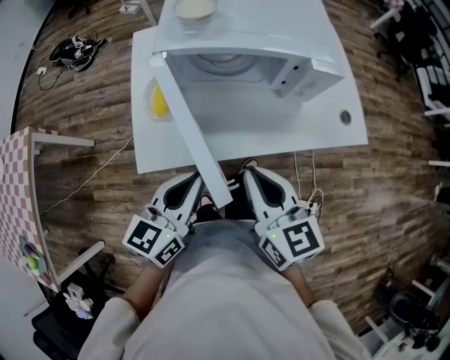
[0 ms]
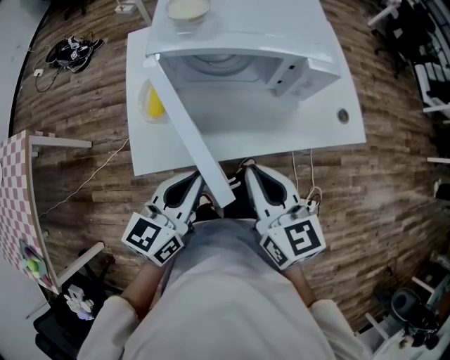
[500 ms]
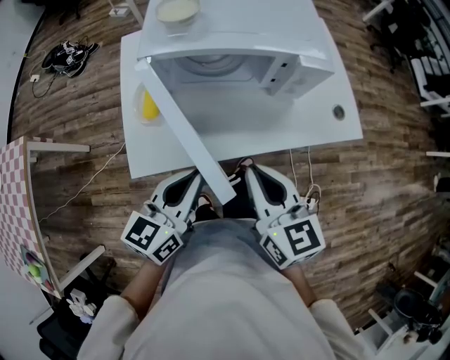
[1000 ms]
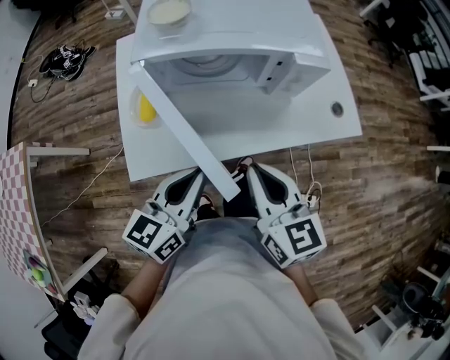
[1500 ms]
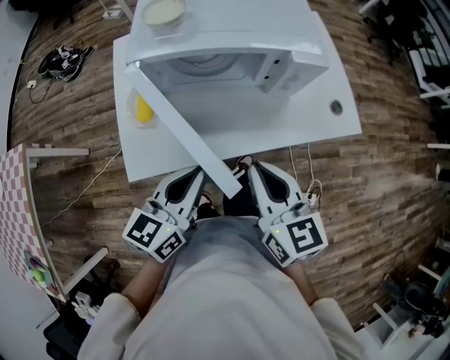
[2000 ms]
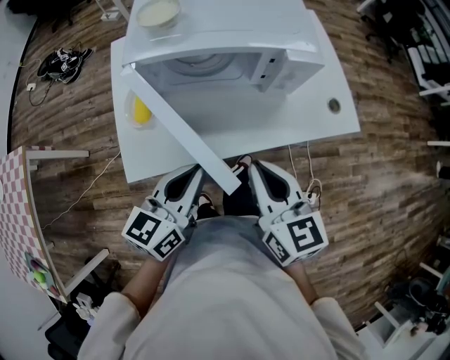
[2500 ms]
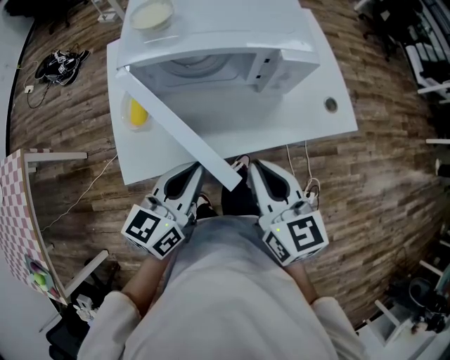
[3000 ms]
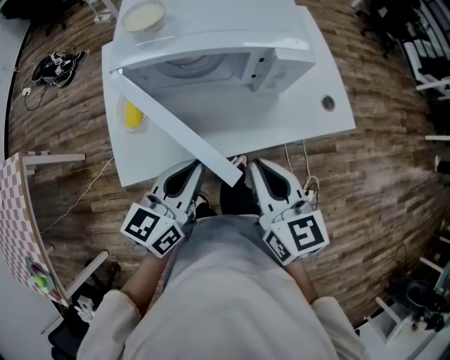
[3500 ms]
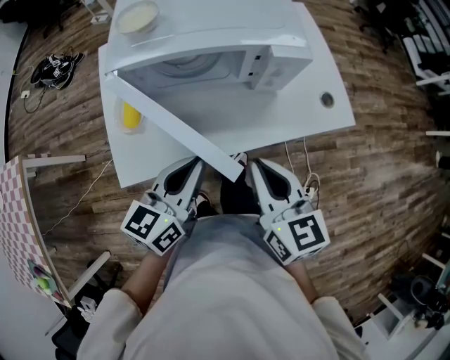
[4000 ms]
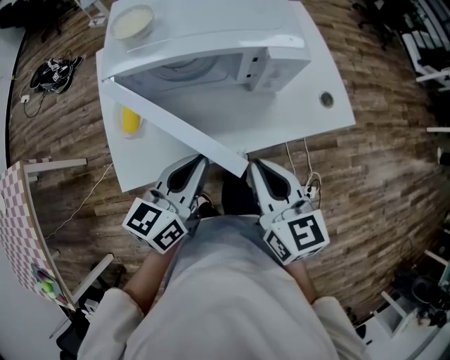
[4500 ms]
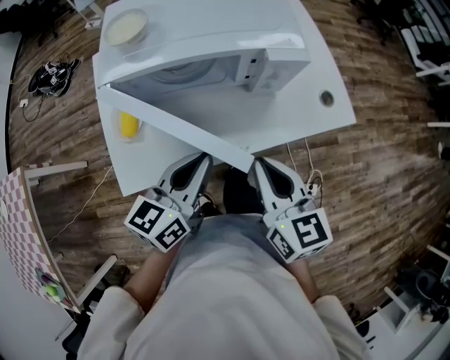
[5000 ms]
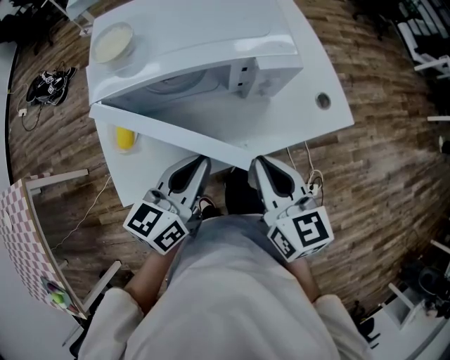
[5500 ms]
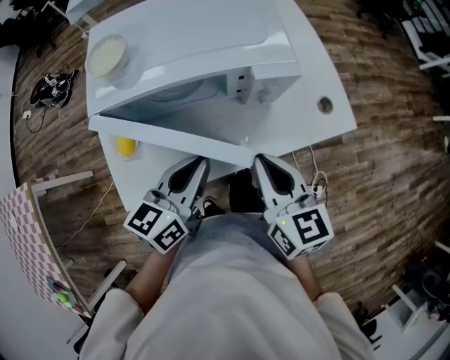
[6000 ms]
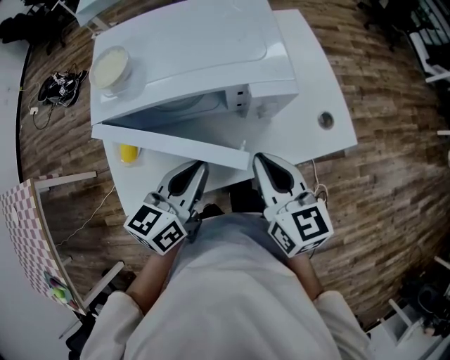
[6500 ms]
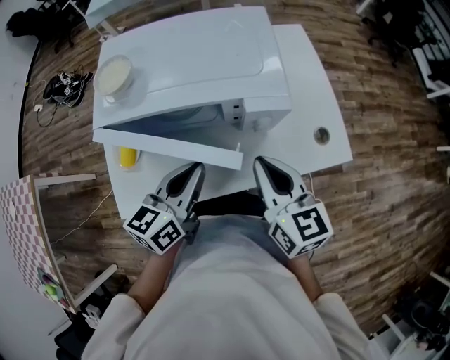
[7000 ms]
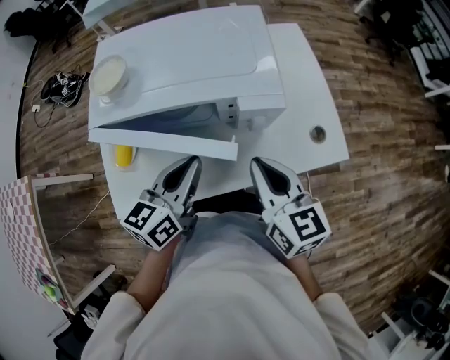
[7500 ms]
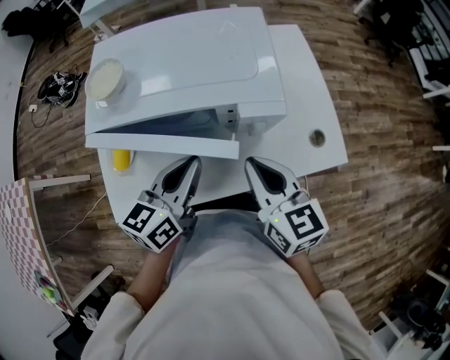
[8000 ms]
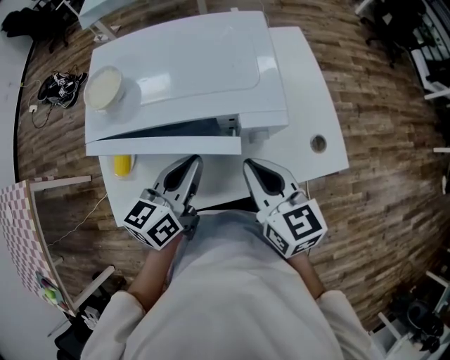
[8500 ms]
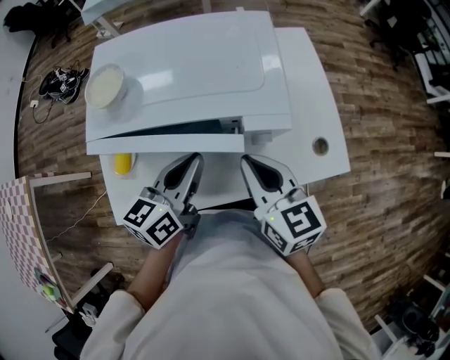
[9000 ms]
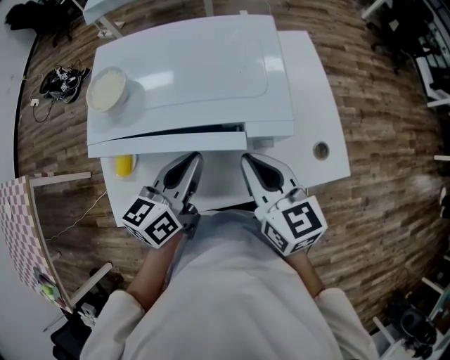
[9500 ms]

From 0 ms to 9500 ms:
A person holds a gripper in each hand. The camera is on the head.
From 0 ms to 2000 ms: The grippers stay close to where they were, moving slightly.
From 2000 ms to 4000 ms: The grippers stay close to where they were, moving slightly.
From 4000 ms to 5500 ms: The right gripper shifts by approximately 5 cm; the left gripper travels forward by approximately 5 cm.
From 5500 ms to 7500 ms: The two grippers go approximately 5 cm forward.
From 7500 ms to 9500 ms: Both grippers move forward, approximately 5 cm.

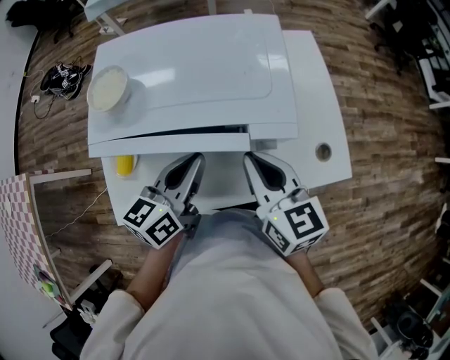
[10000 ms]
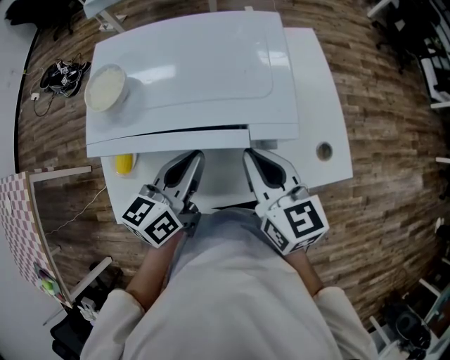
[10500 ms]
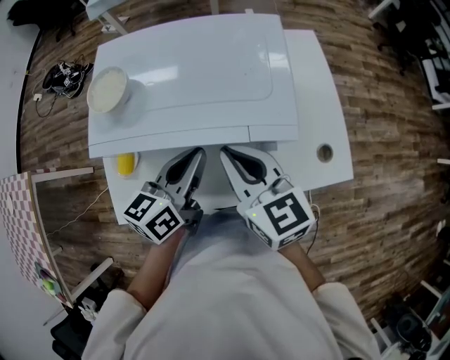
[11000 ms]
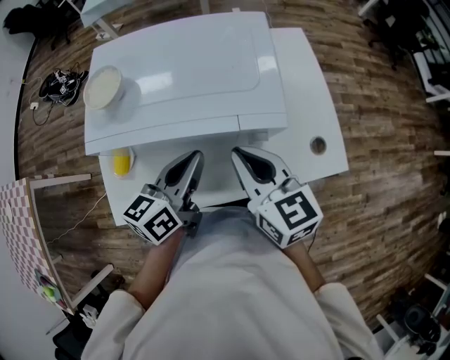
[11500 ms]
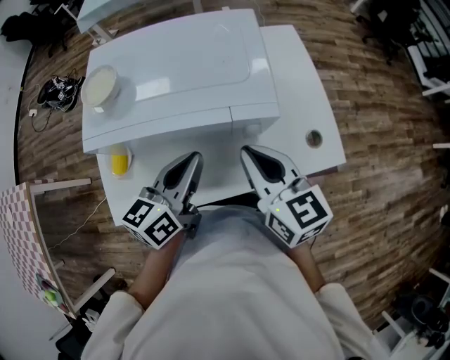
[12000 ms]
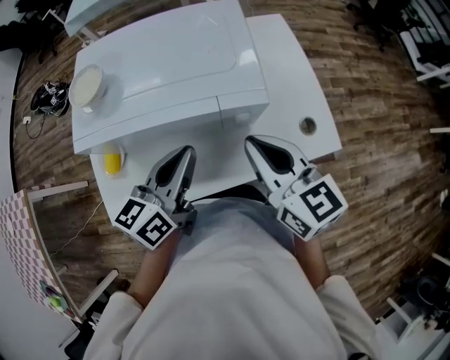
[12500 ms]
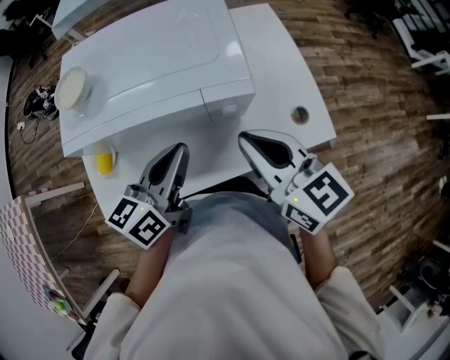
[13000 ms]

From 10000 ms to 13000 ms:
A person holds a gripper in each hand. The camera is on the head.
From 10000 ms to 11500 ms: The grippers make only small movements.
From 11500 ms to 13000 ms: The right gripper shifts roughly 5 cm to the right.

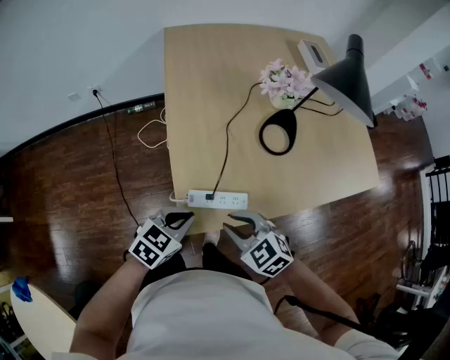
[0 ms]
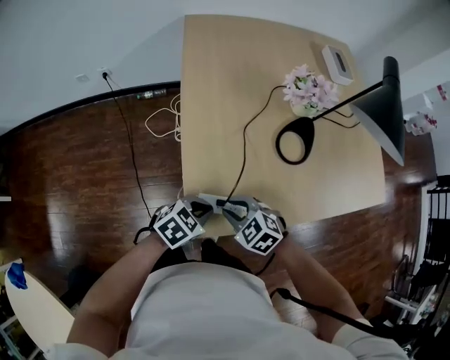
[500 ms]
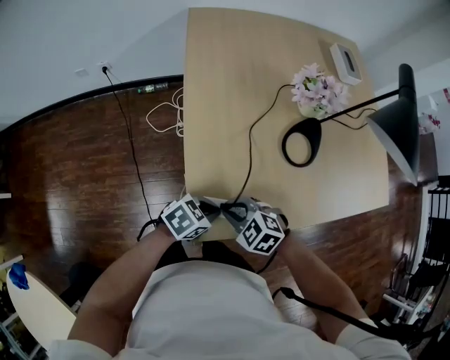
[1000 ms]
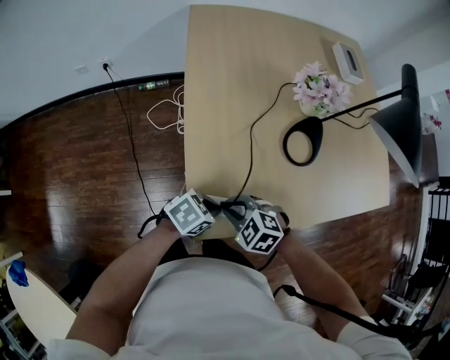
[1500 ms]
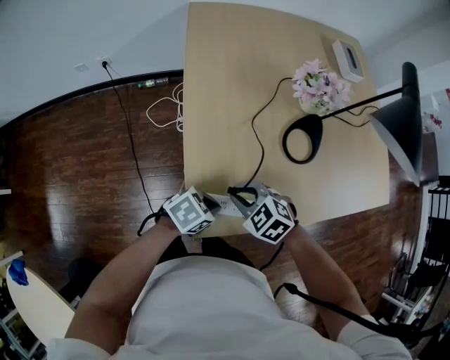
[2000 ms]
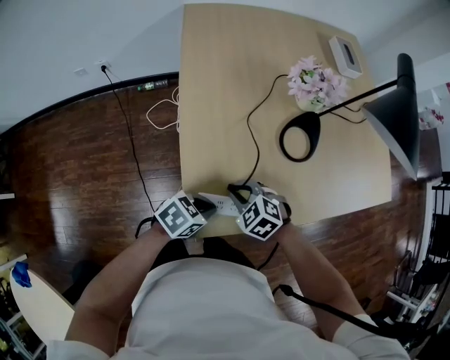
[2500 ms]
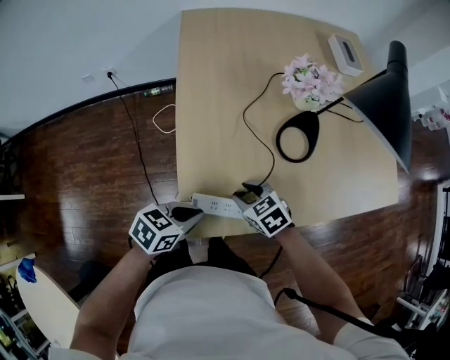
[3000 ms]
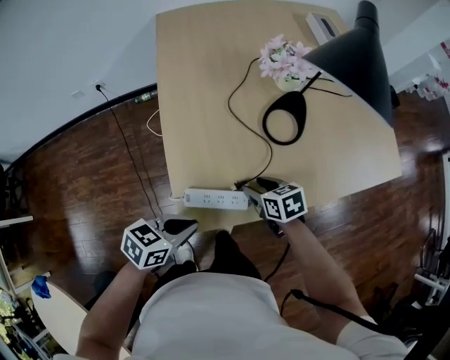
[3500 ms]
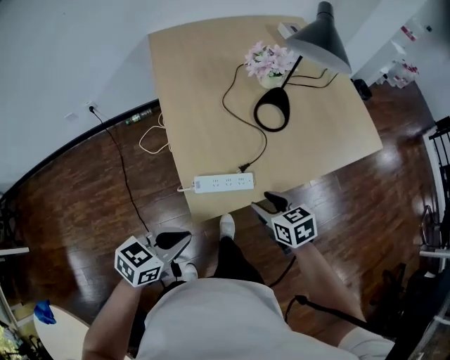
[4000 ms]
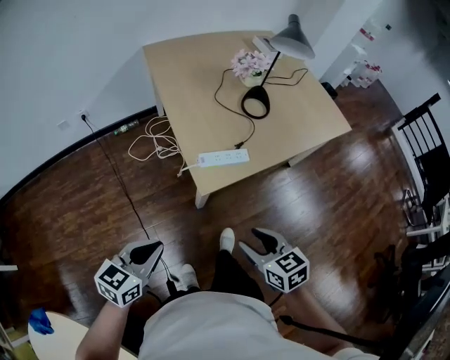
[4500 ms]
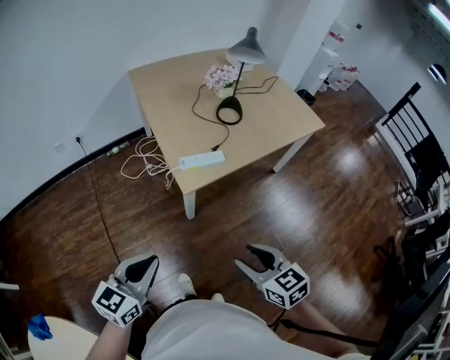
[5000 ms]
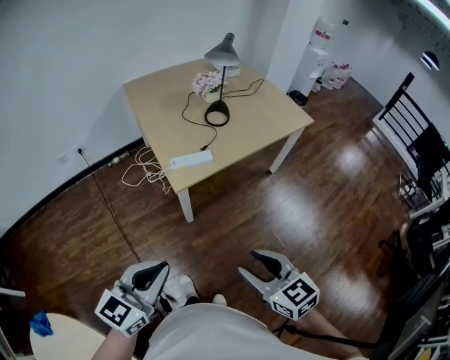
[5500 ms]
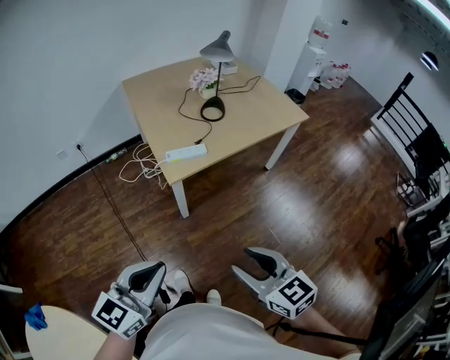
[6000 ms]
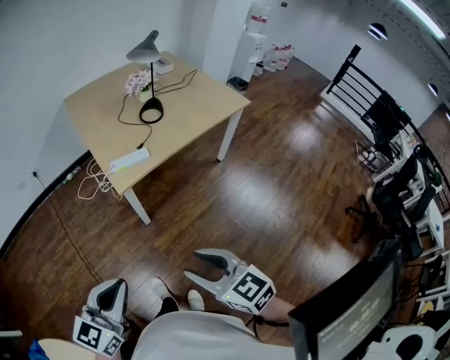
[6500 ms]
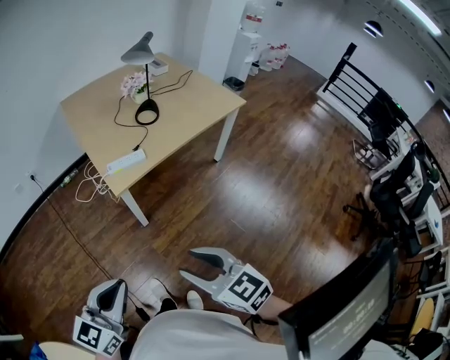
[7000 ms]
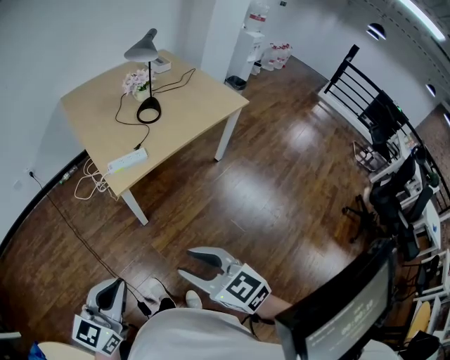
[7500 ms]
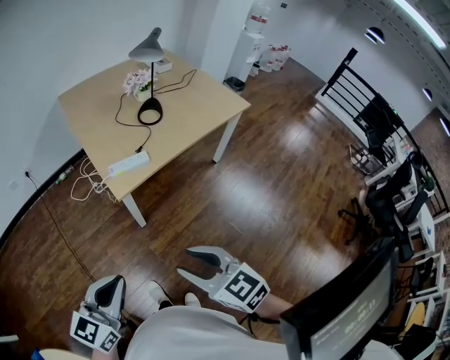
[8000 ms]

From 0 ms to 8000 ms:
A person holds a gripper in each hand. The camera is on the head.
From 0 ms to 2000 ms: The left gripper goes roughly 5 cm downward, and turns by roughly 30 degrees. Meanwhile the right gripper shifts by some 15 cm.
From 2000 ms to 4000 ms: The left gripper shifts by about 20 cm, and swivels about 20 degrees. The right gripper shifts by approximately 15 cm, rotates around the line of its fingers by roughly 50 degrees, clockwise from behind, and opens up.
From 4000 ms to 6000 ms: The grippers both shift backward and upward by some 40 cm. The right gripper rotates some 30 degrees, while the left gripper rotates approximately 30 degrees.
From 6000 ms to 8000 ms: The left gripper changes place by approximately 5 cm. The right gripper moves approximately 5 cm.

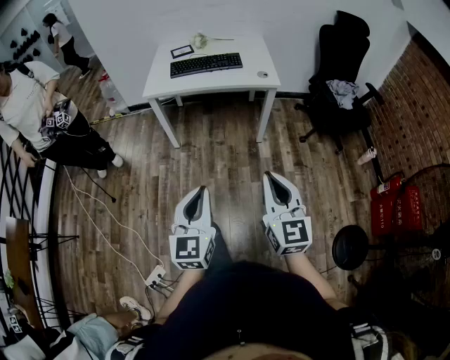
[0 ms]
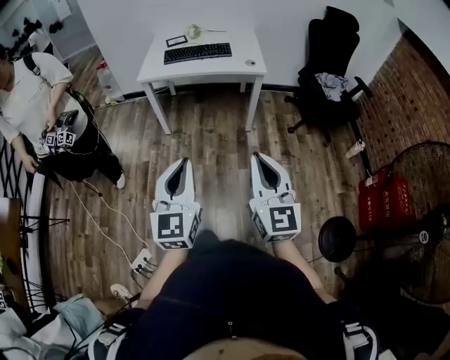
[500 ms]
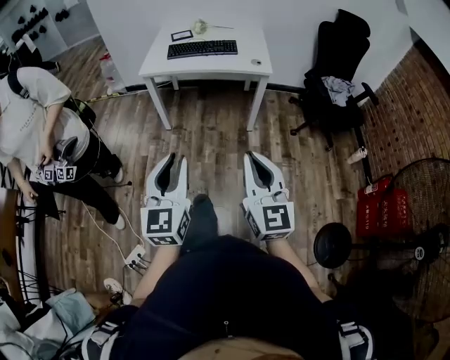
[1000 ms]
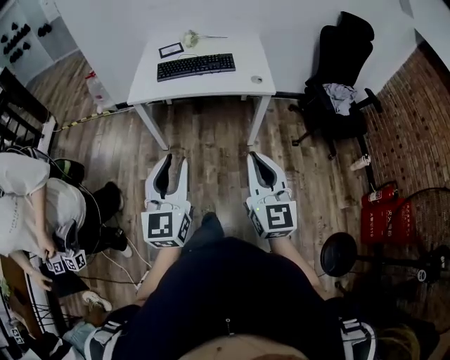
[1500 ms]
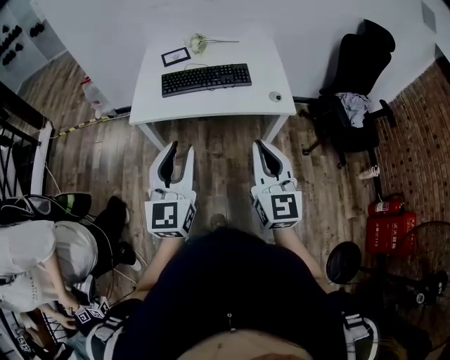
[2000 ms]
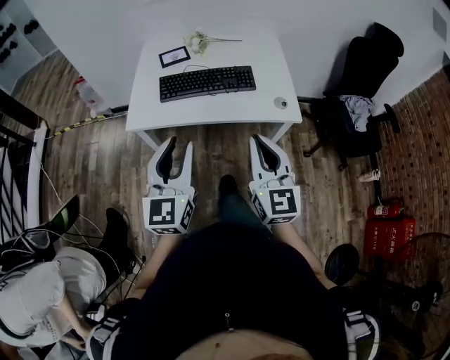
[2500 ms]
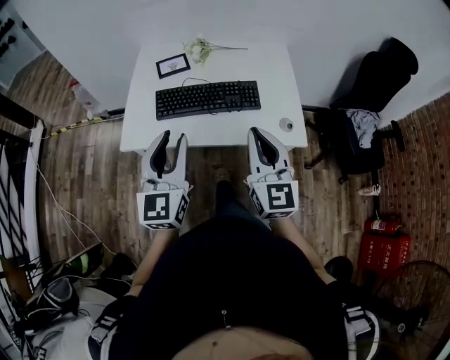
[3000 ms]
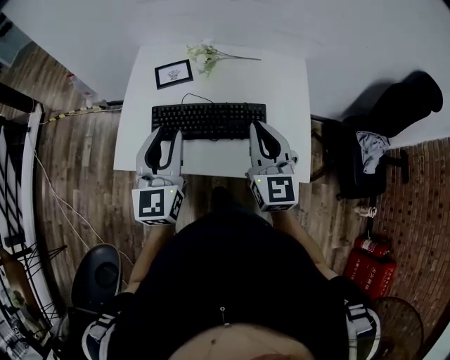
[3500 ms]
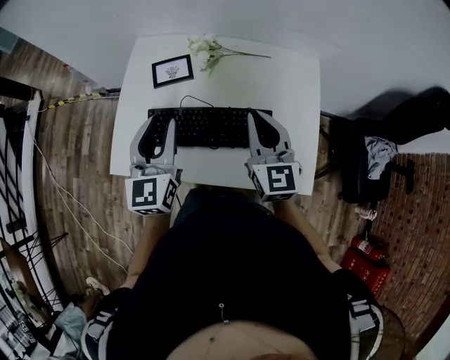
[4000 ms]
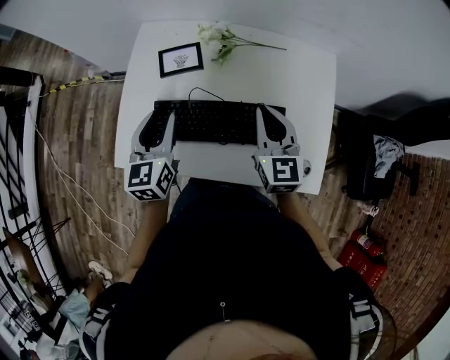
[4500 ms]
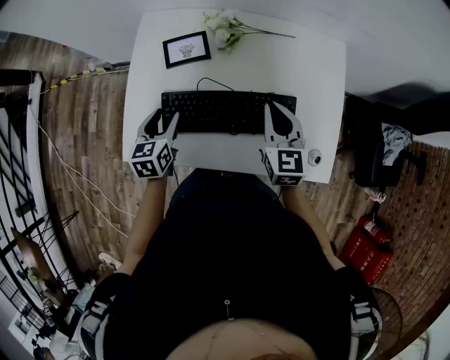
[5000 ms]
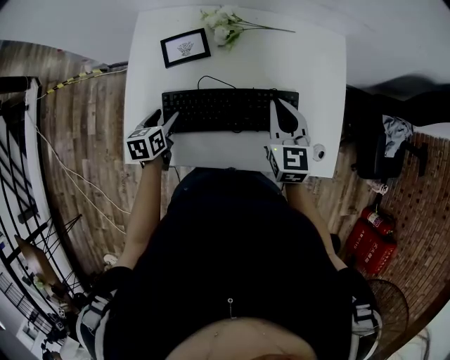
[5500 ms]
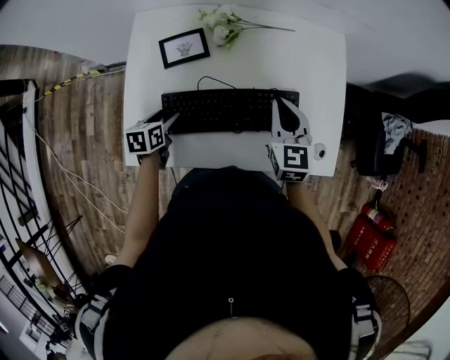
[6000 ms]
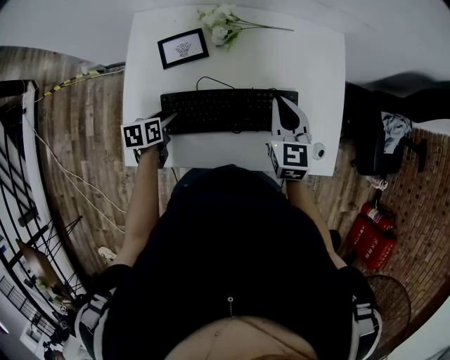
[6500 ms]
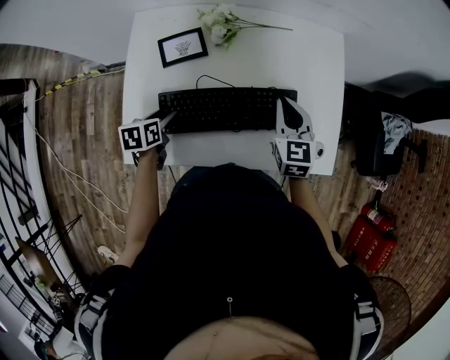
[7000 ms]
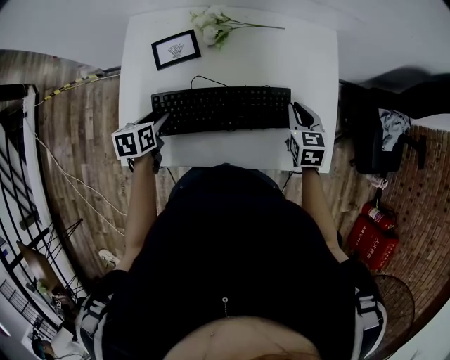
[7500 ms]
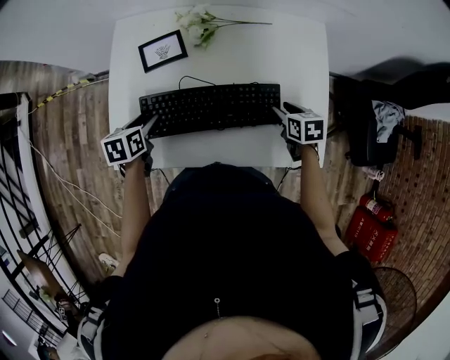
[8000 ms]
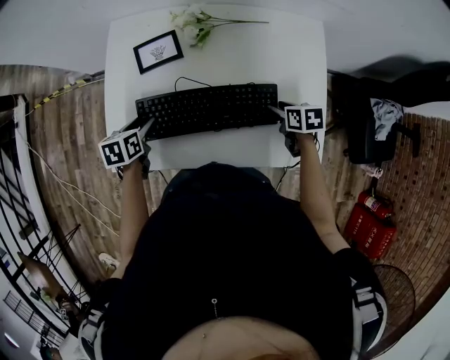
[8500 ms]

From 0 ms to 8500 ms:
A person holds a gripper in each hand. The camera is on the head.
From 0 ms to 2000 ms: Both grippers move forward, about 35 cm. The left gripper opens its fingers.
From 2000 ms to 4000 ms: The pair of grippers is taken forward, some 50 cm.
From 4000 ms to 6500 ms: The left gripper travels downward by approximately 25 cm, angles its fingers downward, by about 50 degrees, and opens up, while the right gripper goes roughly 10 cm downward.
From 6500 ms to 8500 ms: The right gripper heads downward and to the right, covering roughly 20 cm, angles its fingers downward, by about 30 degrees, and opens.
